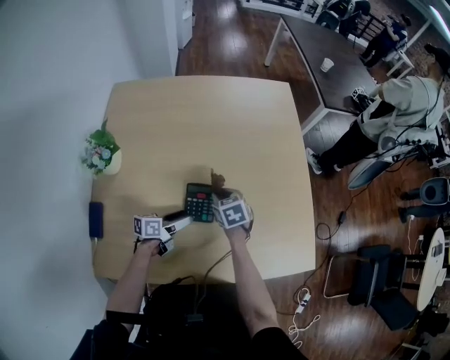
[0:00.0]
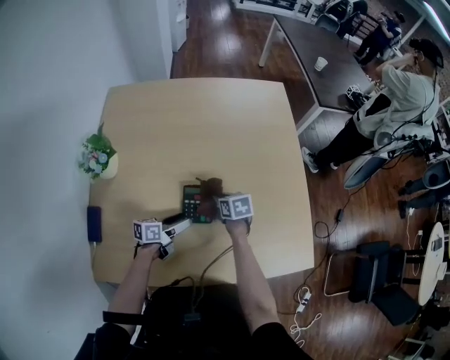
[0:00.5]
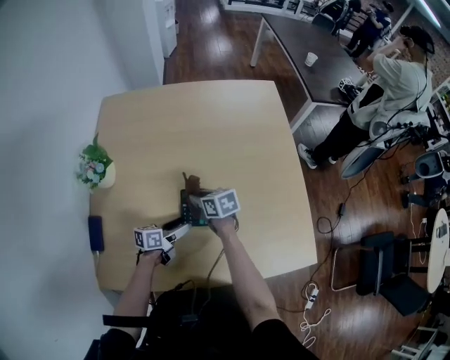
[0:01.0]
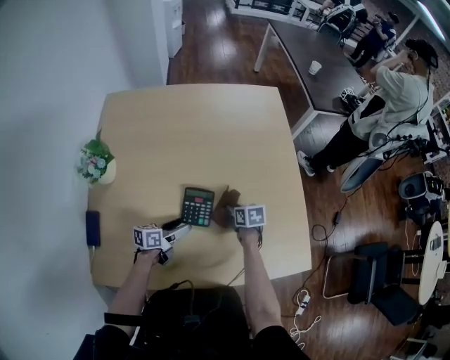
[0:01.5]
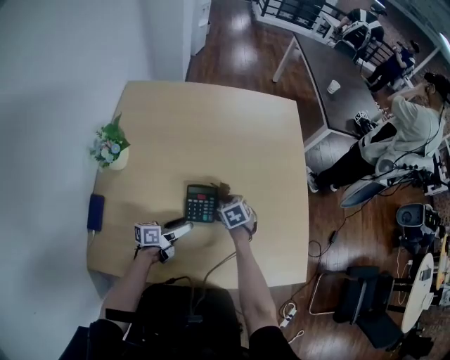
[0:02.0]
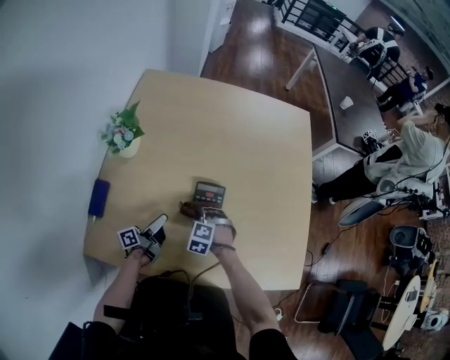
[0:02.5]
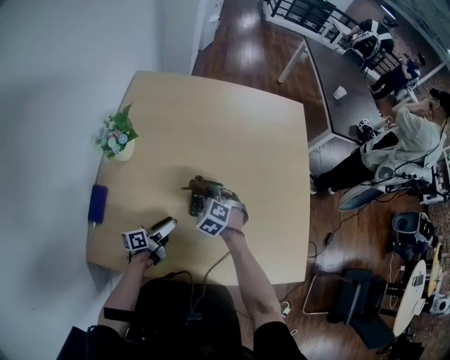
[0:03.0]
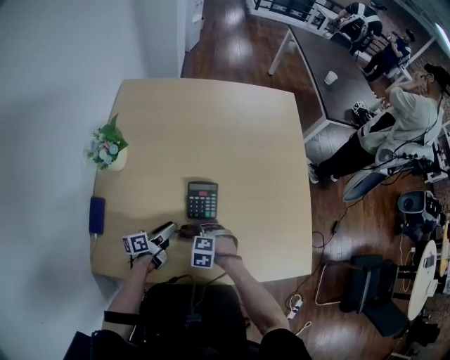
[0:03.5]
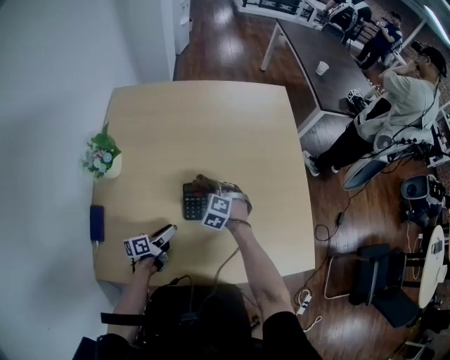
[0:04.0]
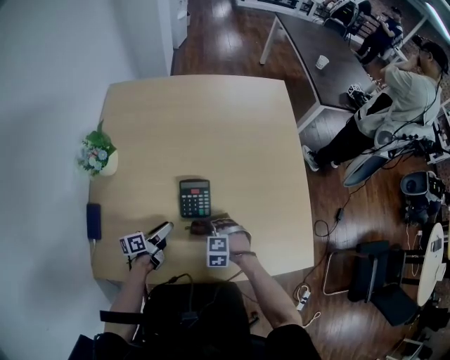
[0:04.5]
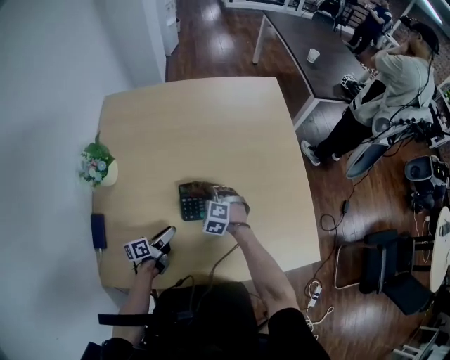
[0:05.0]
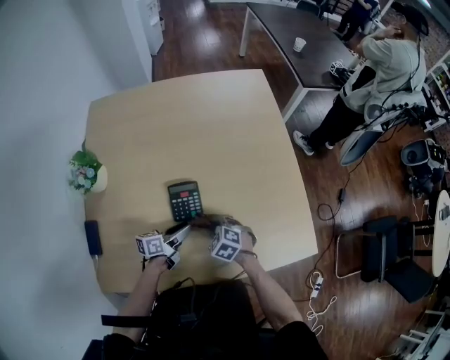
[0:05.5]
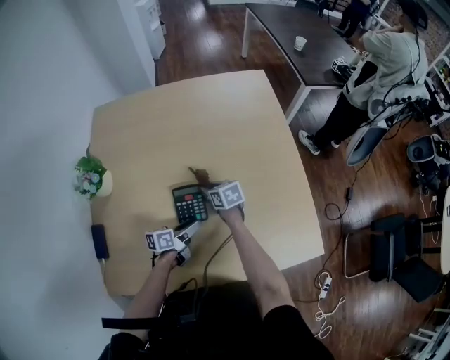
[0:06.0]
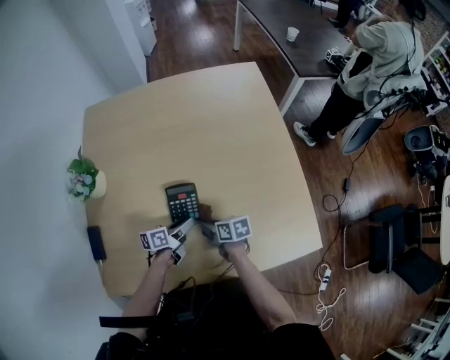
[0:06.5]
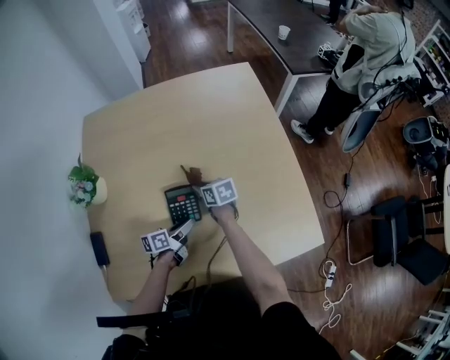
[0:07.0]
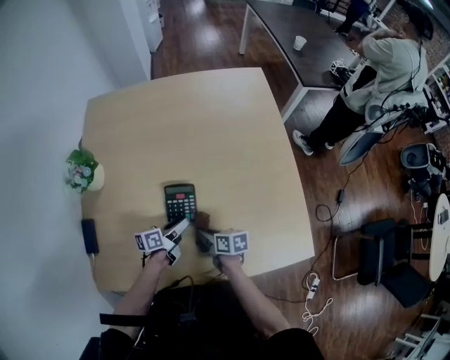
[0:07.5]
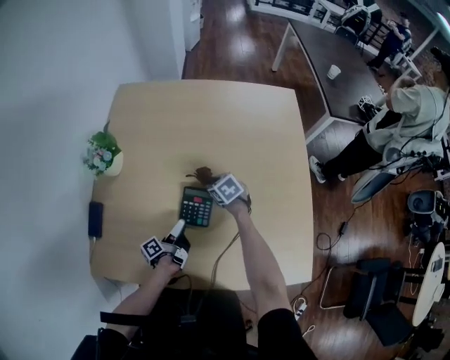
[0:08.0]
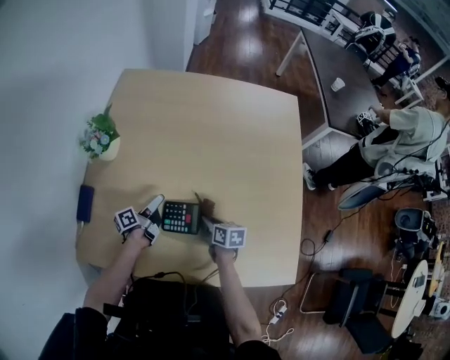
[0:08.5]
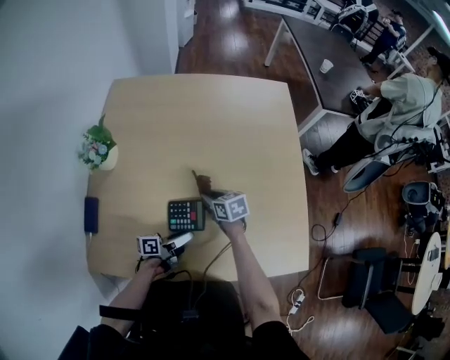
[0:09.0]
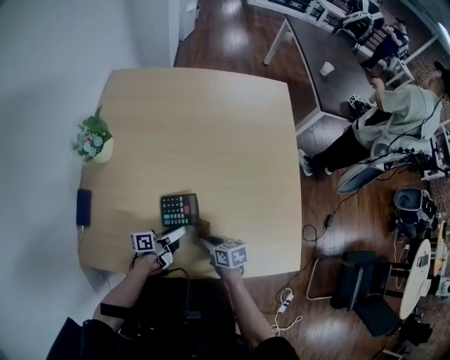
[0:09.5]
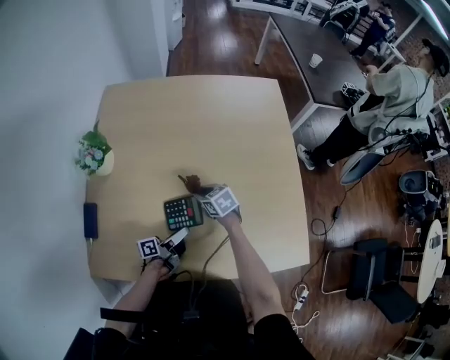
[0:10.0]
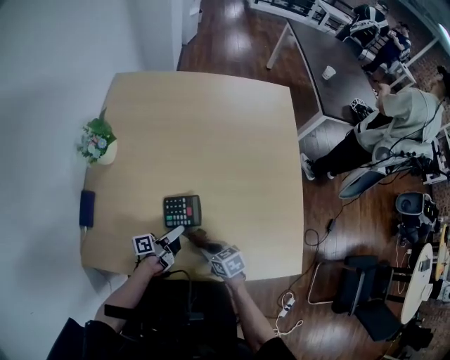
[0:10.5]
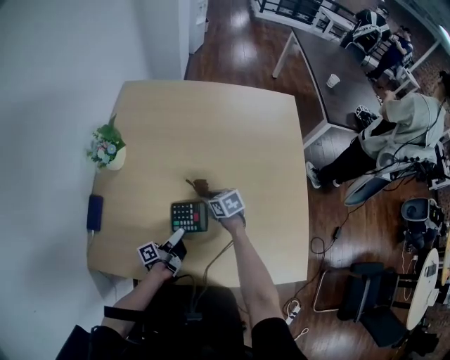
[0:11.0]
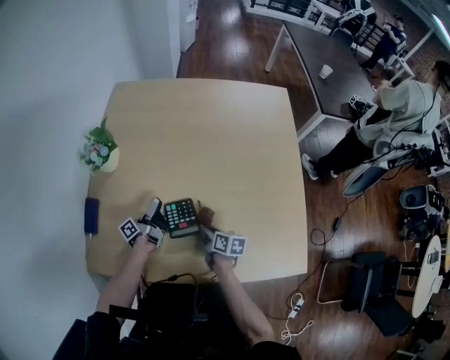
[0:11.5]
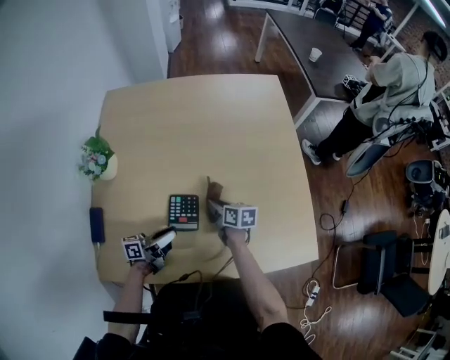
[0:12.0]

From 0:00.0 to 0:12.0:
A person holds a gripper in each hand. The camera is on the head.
From 0:00.0 to 0:02.0: The right gripper goes left and right, roughly 15 cm each way, reversing 2 times.
From 0:02.0 to 0:04.0: The right gripper rolls counterclockwise, seen from behind, by approximately 40 degrees.
From 0:04.0 to 0:06.0: The left gripper goes roughly 10 cm to the right. The right gripper moves forward and backward over about 20 cm, changing direction 3 times, and rotates around the line of its fingers by approximately 70 degrees, clockwise from behind.
From 0:06.0 to 0:08.0: The left gripper shifts by approximately 5 cm, and turns by about 50 degrees; the right gripper turns by approximately 30 degrees.
From 0:08.0 to 0:10.0: The right gripper moves forward and backward over approximately 25 cm, changing direction 3 times. Meanwhile the left gripper moves backward, about 5 cm, and swivels approximately 30 degrees.
From 0:10.0 to 0:12.0: The right gripper swings forward and backward, about 20 cm each way, with 3 reversals, and swivels approximately 40 degrees. Meanwhile the left gripper heads to the left, covering approximately 5 cm, moves some 10 cm forward and comes back, and changes its angle by some 20 degrees.

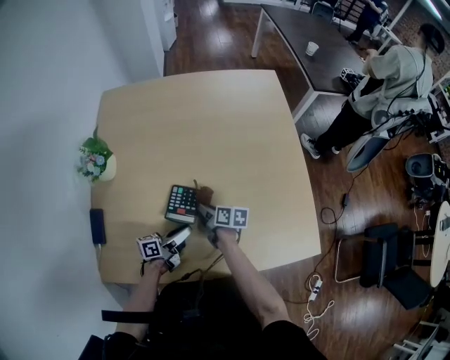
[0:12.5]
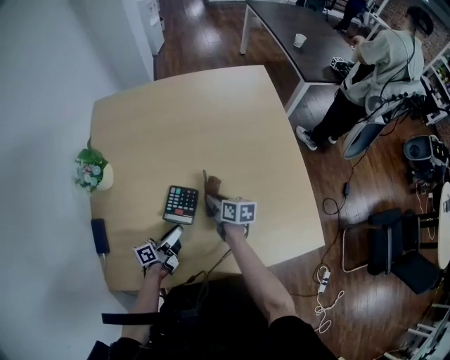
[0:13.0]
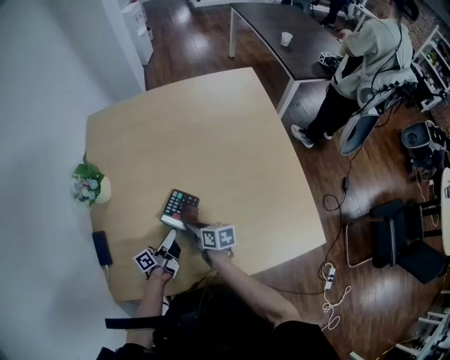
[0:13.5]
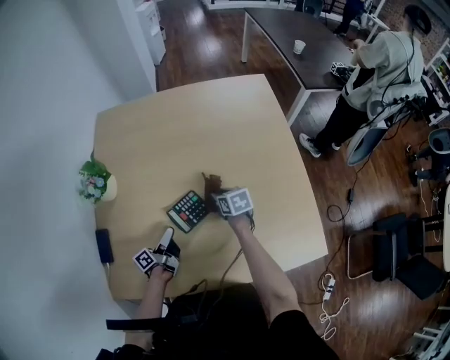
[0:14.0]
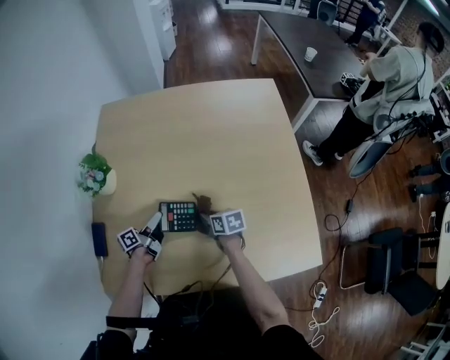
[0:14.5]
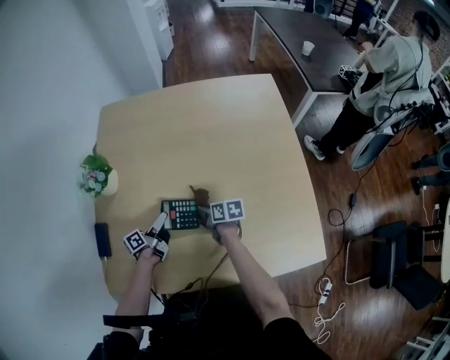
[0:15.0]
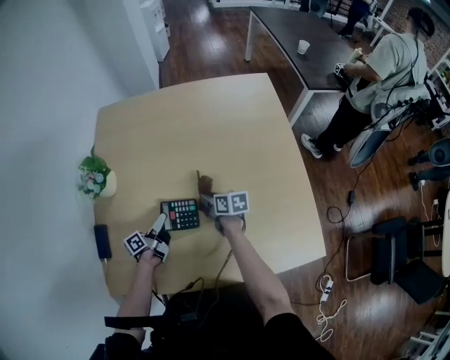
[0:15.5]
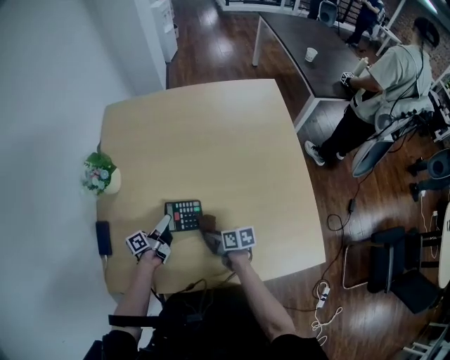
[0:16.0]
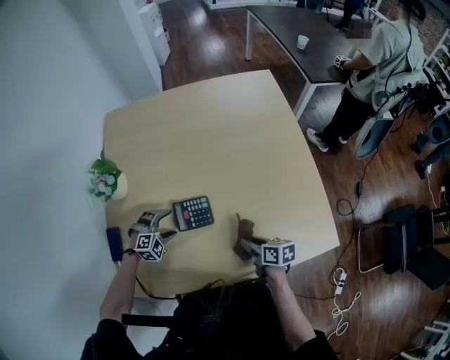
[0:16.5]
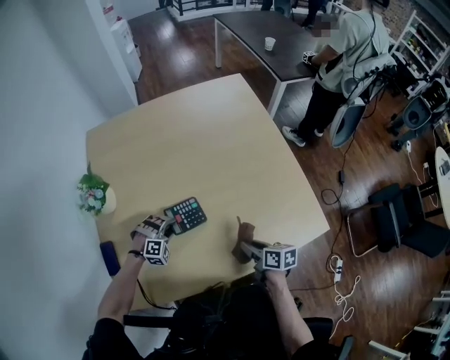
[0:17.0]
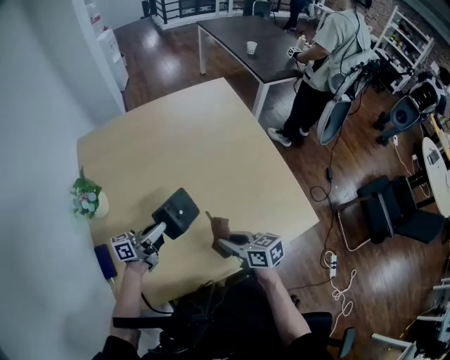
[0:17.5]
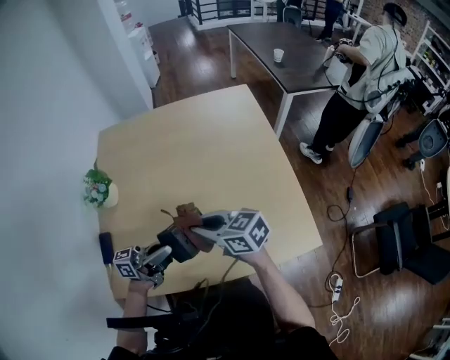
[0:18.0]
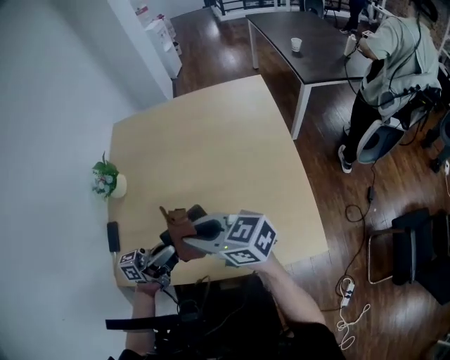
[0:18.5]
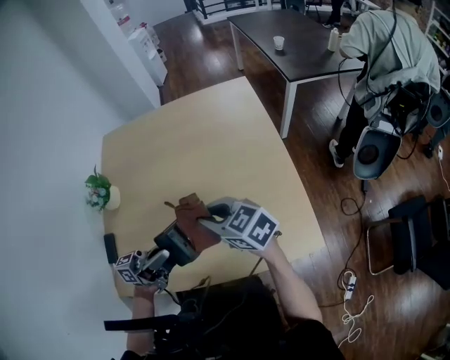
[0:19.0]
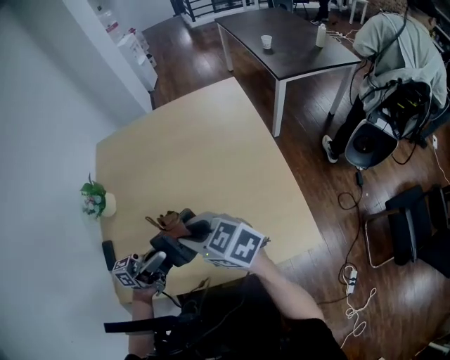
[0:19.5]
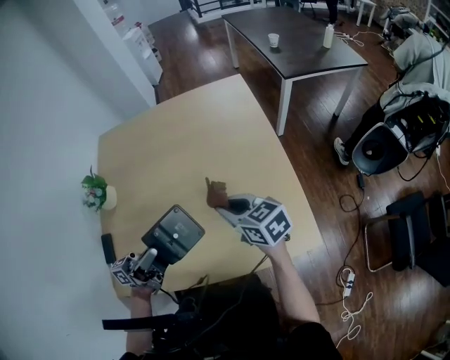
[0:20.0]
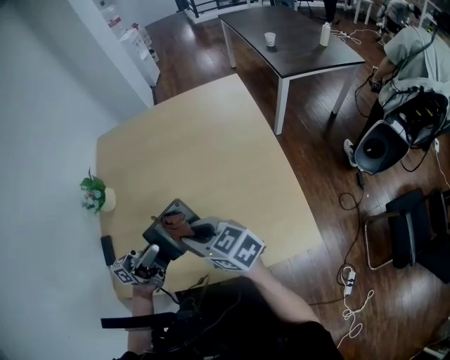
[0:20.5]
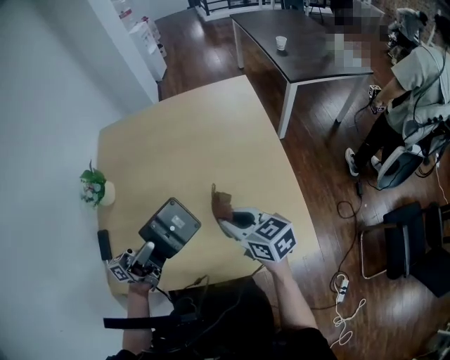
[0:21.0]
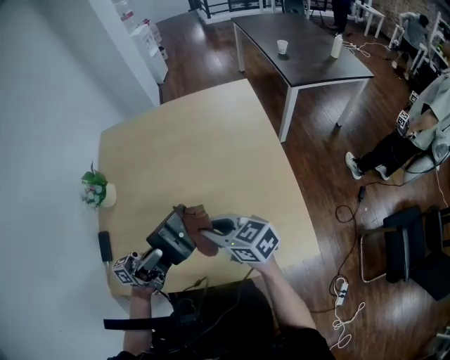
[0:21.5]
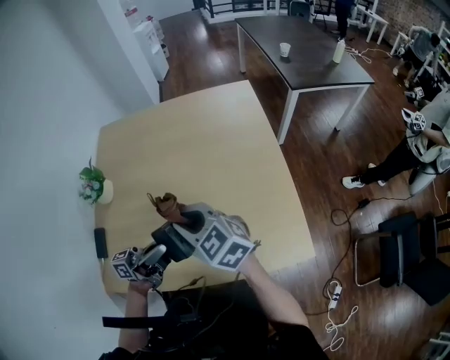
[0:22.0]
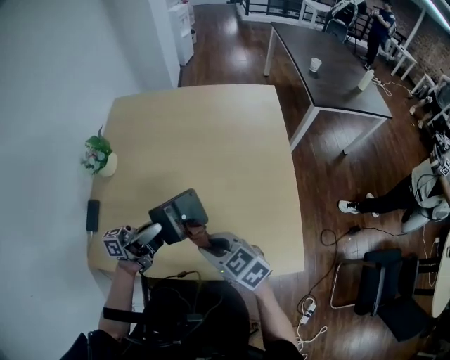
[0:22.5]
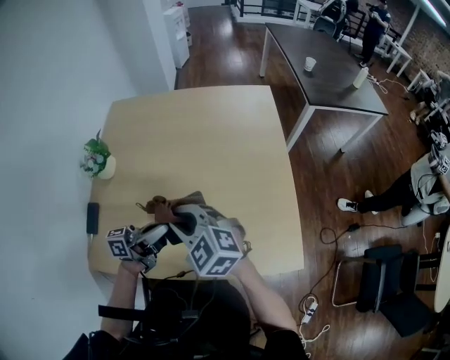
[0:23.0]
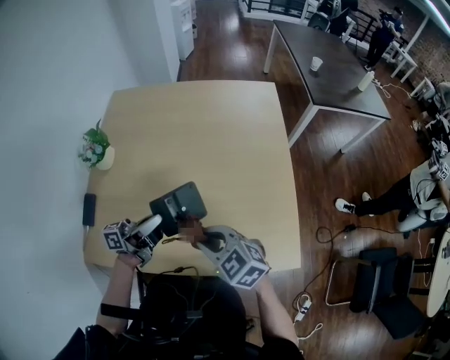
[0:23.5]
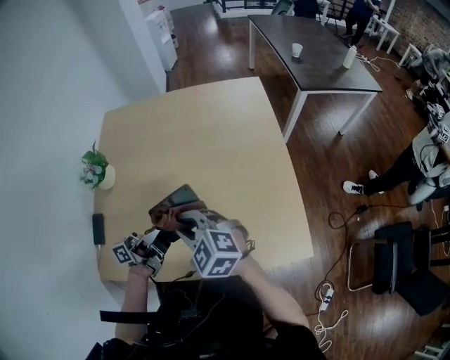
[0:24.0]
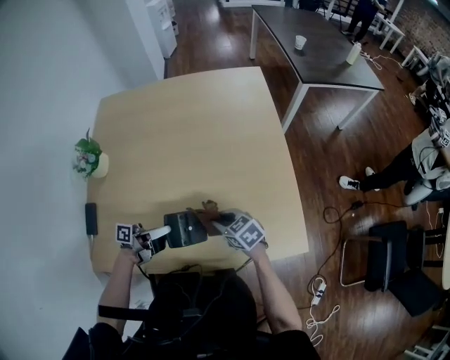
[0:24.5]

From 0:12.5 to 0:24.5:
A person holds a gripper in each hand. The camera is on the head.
From 0:12.5 to 0:14.5: The right gripper travels forward and back again, approximately 10 cm each way, and changes its angle by roughly 20 degrees, while the left gripper is displaced forward and to the left by roughly 15 cm, and changes its angle by some 20 degrees.
From 0:14.5 to 0:16.5: The left gripper goes approximately 5 cm backward, rotates around the line of its fingers by approximately 120 degrees, clockwise from behind, and opens its fingers; the right gripper goes roughly 15 cm backward.
From 0:16.5 to 0:18.5: The two grippers go some 25 cm upward. The right gripper swivels some 60 degrees, while the left gripper tilts its fingers approximately 60 degrees upward, and closes its fingers.
From 0:20.5 to 0:22.5: The right gripper moves about 10 cm to the right and comes back.
From 0:22.5 to 0:24.5: Both grippers move downward, about 15 cm. The left gripper turns by some 30 degrees.

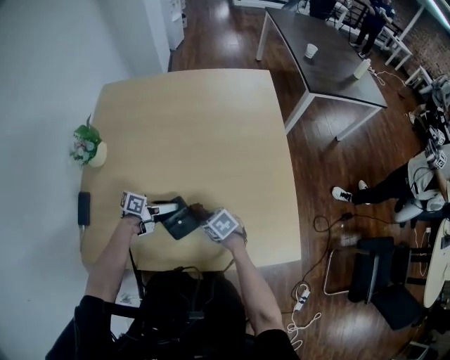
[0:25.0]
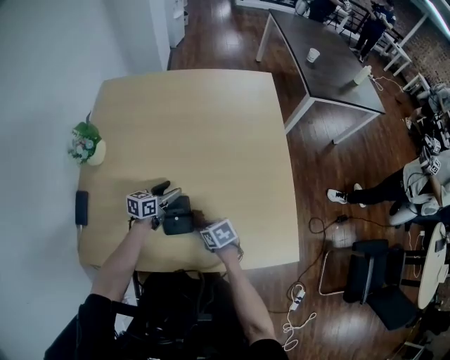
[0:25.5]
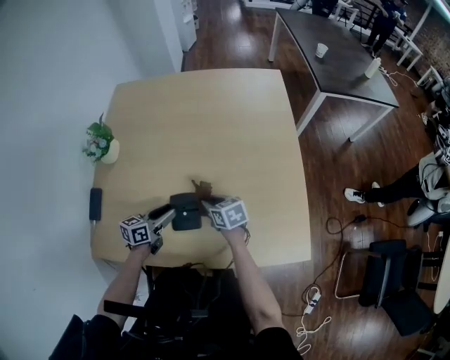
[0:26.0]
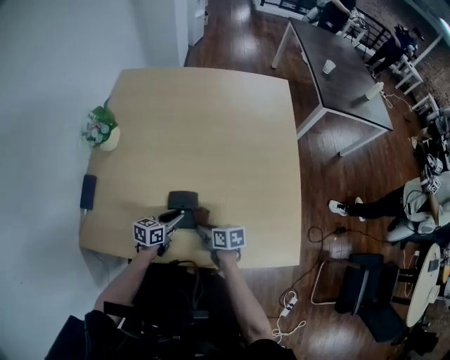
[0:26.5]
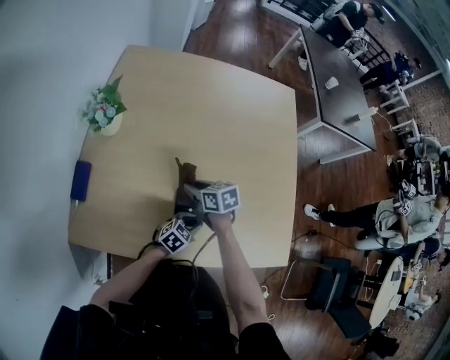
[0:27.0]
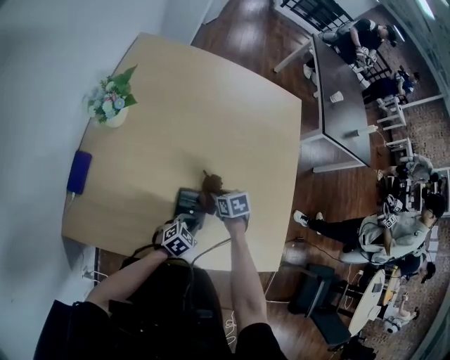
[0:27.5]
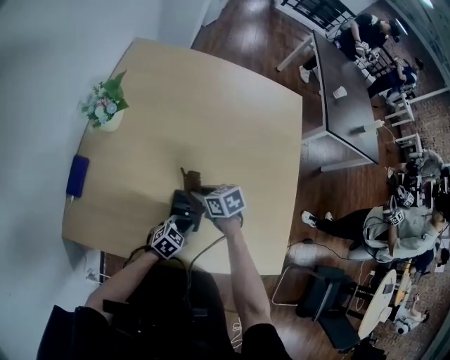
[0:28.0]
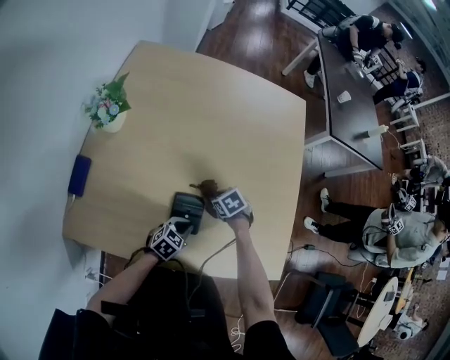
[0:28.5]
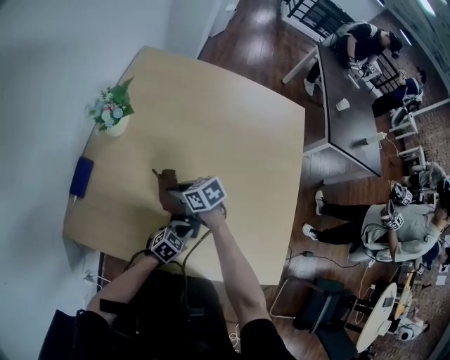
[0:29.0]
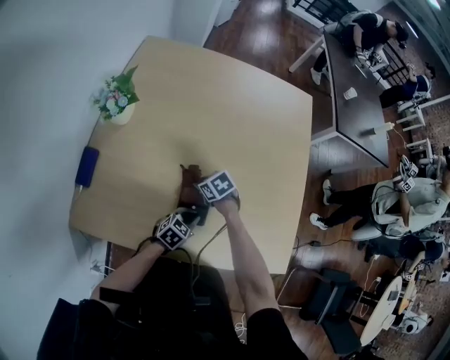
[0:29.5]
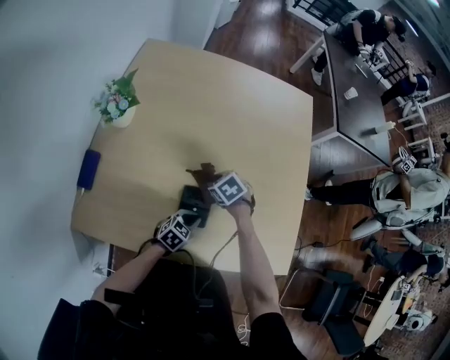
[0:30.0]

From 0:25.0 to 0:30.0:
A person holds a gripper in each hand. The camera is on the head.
From 0:25.0 to 0:27.5: The left gripper changes place by about 10 cm, twists about 40 degrees clockwise, seen from behind, and closes; the right gripper swings up and down, approximately 10 cm each way, with 3 reversals.
From 0:27.5 to 0:30.0: The right gripper moves up and down over about 10 cm, changing direction 4 times, and swivels roughly 30 degrees.
